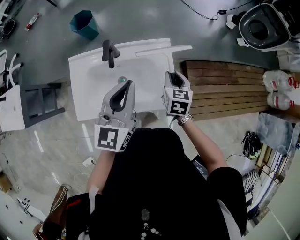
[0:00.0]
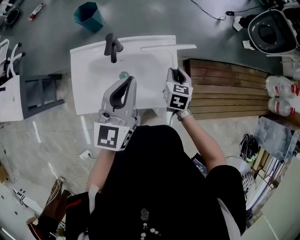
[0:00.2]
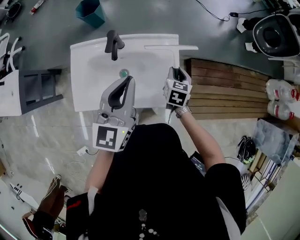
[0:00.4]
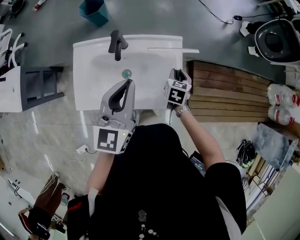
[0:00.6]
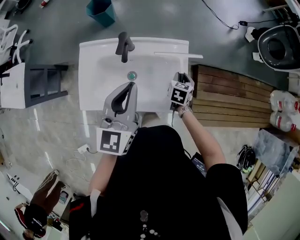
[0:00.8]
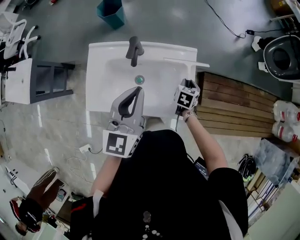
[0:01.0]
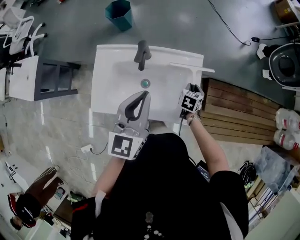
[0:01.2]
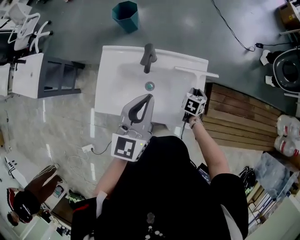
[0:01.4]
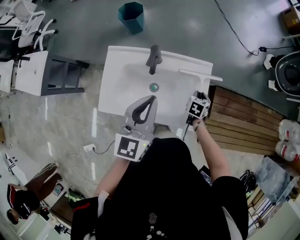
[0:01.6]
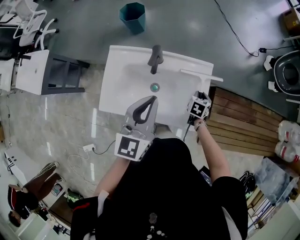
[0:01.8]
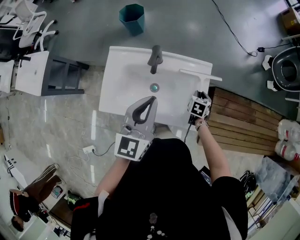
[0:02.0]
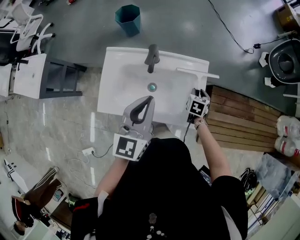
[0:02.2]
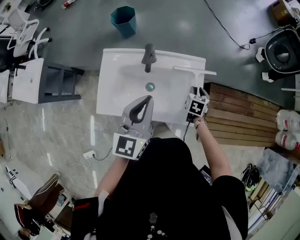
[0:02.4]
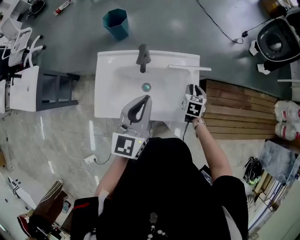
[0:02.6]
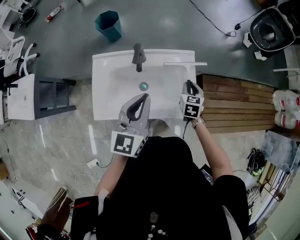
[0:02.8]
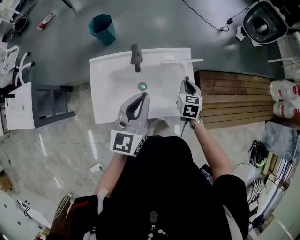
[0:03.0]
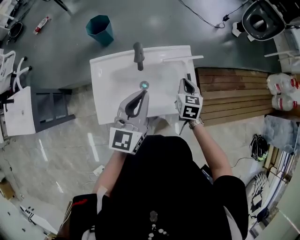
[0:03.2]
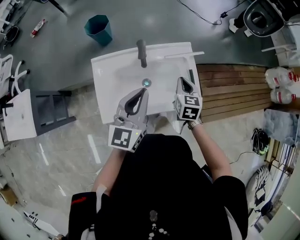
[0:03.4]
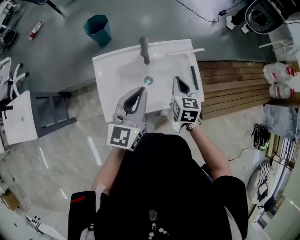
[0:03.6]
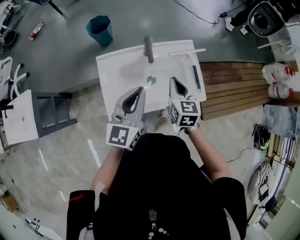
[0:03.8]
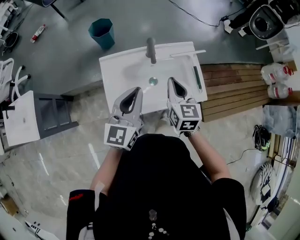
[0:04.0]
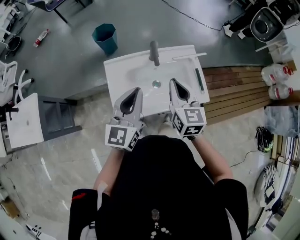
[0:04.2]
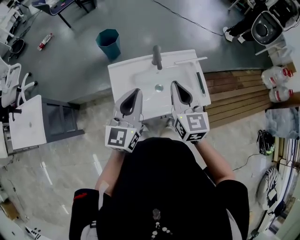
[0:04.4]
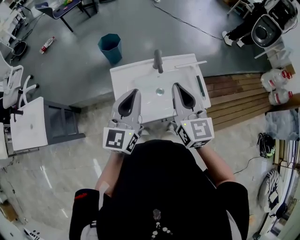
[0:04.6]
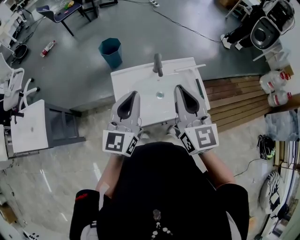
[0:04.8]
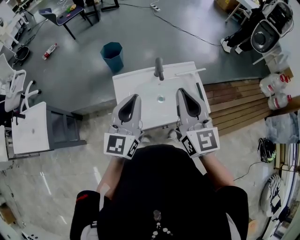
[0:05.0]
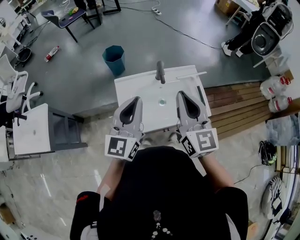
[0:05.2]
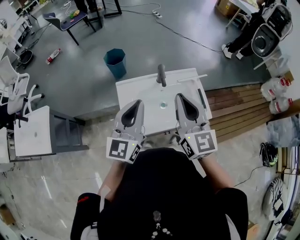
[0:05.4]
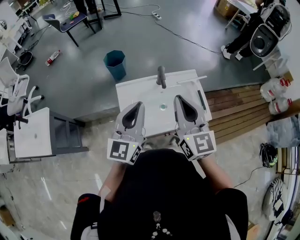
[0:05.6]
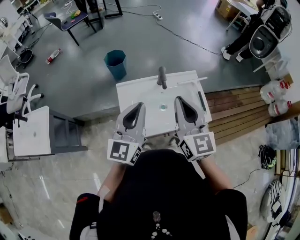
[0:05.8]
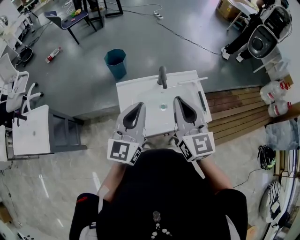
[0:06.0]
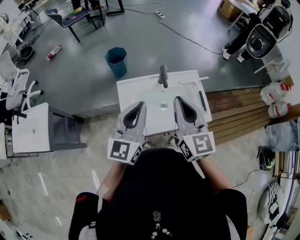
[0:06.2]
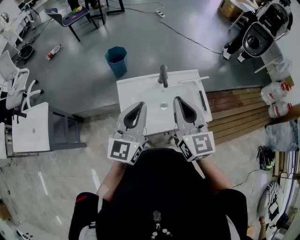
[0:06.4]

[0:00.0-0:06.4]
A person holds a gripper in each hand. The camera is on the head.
0:00.0 to 0:01.6: The right gripper heads downward, covering approximately 15 cm. Meanwhile the left gripper goes about 5 cm to the left.
0:01.6 to 0:03.2: The right gripper is displaced upward, backward and to the left by roughly 15 cm, and closes its fingers.
0:03.2 to 0:04.8: The left gripper goes some 20 cm to the left, upward and backward; the right gripper is displaced upward, to the left and backward by approximately 40 cm, and tilts its fingers some 40 degrees upward.
0:04.8 to 0:06.4: The grippers move only a little.

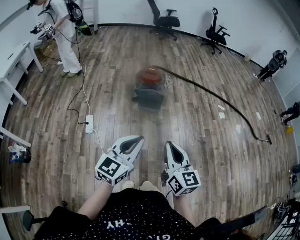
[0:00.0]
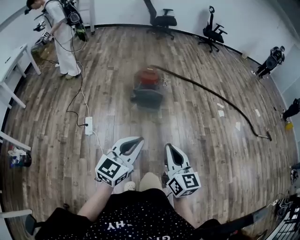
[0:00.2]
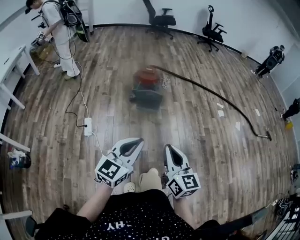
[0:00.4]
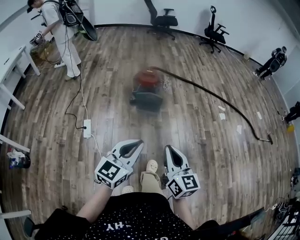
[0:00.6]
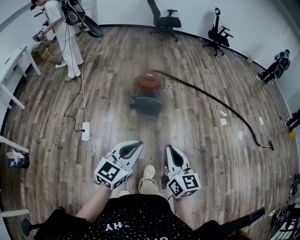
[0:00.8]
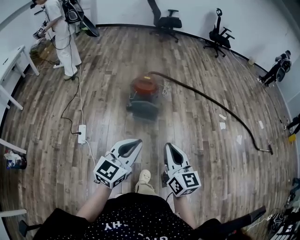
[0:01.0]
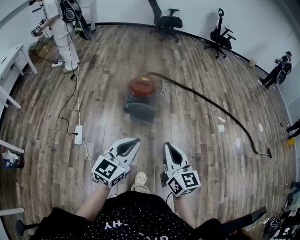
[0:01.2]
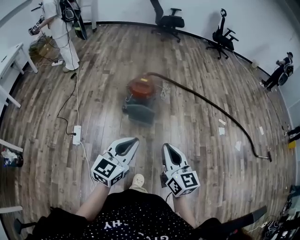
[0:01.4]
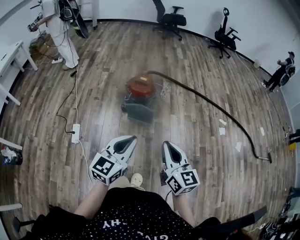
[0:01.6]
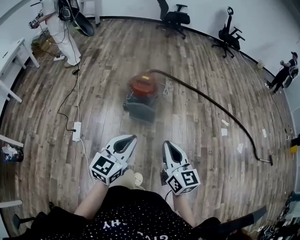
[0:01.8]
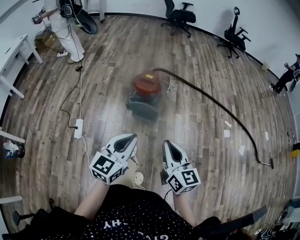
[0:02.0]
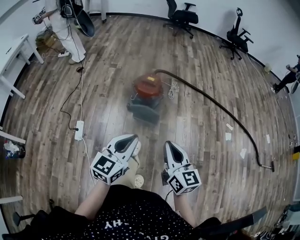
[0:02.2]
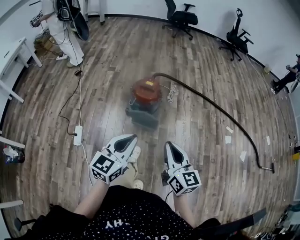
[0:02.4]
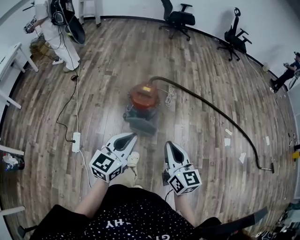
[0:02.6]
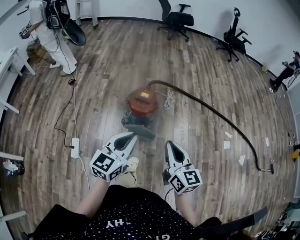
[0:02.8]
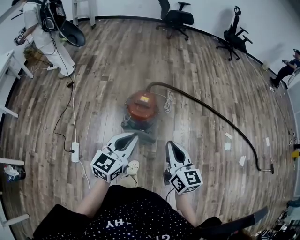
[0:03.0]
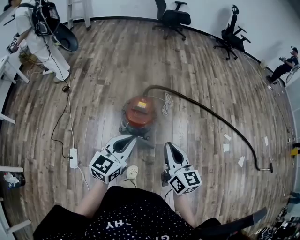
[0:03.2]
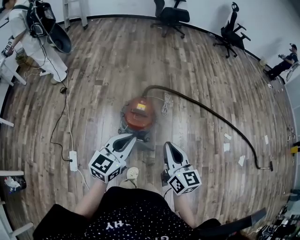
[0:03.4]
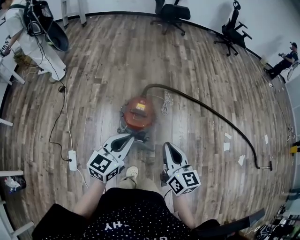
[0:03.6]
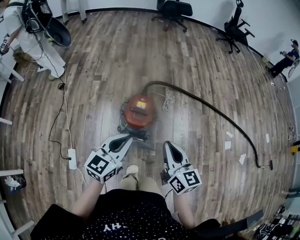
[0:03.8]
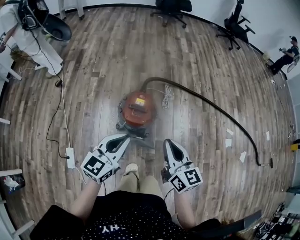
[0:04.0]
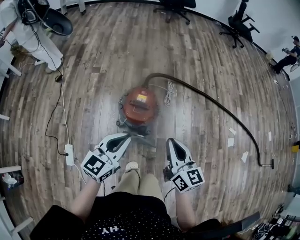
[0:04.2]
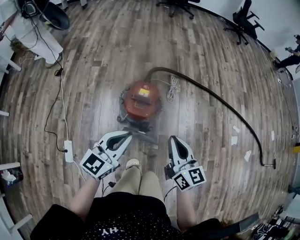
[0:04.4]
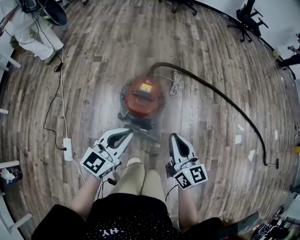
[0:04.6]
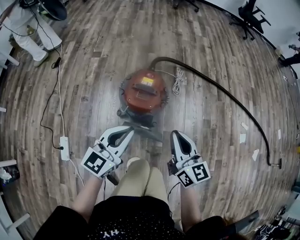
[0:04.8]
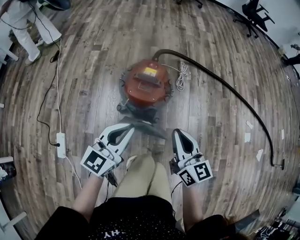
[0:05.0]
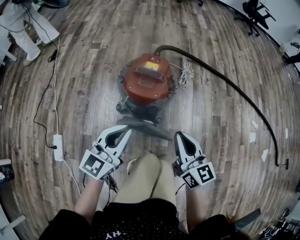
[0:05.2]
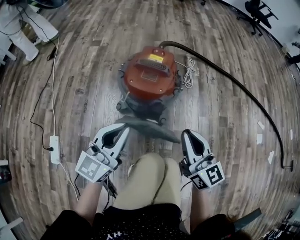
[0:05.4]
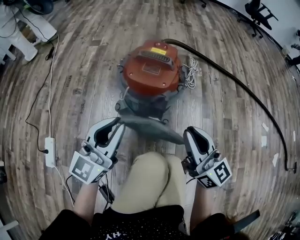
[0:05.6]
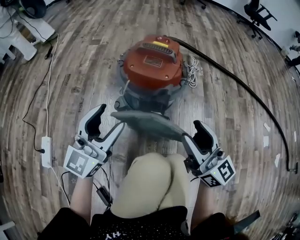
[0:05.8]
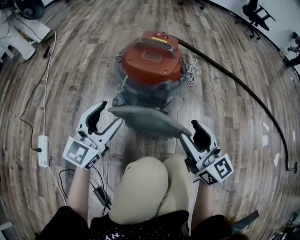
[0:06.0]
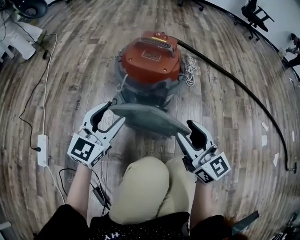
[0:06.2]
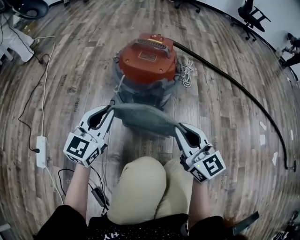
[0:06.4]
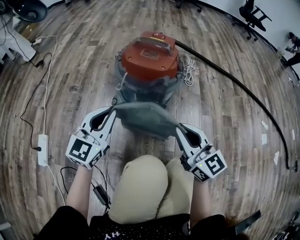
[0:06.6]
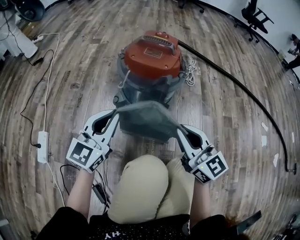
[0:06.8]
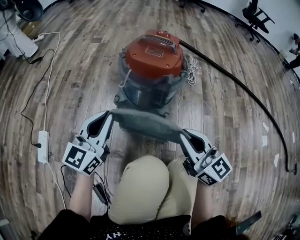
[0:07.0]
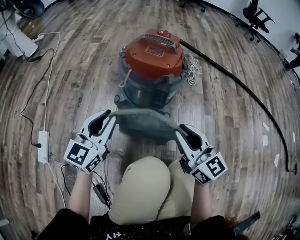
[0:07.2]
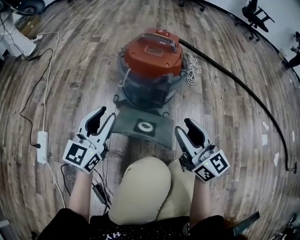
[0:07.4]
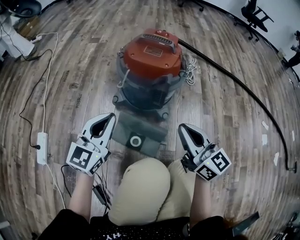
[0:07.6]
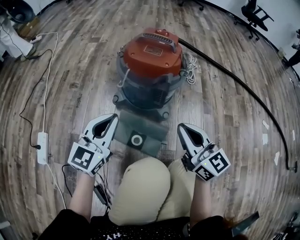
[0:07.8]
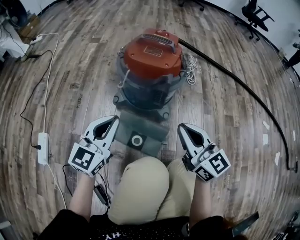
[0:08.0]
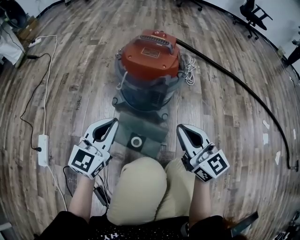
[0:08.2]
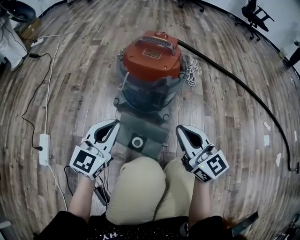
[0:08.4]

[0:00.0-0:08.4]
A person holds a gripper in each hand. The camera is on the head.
0:00.0 to 0:01.4: The grippers both shift forward by roughly 25 cm.
0:01.4 to 0:02.8: The two grippers go approximately 25 cm forward.
0:02.8 to 0:04.2: Both grippers move forward and downward, roughly 20 cm.
0:04.2 to 0:05.6: The two grippers go roughly 35 cm downward. The right gripper rotates roughly 20 degrees. Meanwhile the left gripper rotates about 20 degrees.
0:05.6 to 0:07.0: The left gripper travels downward by about 10 cm, and opens and closes again, while the right gripper heads downward and backward, covering roughly 10 cm, and opens, then closes again.
0:07.0 to 0:08.4: The right gripper opens and closes again; the left gripper opens, then closes again.

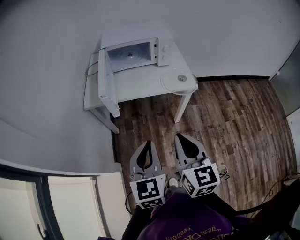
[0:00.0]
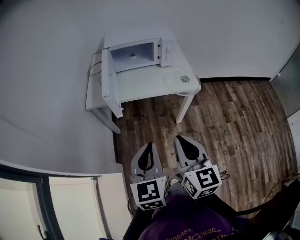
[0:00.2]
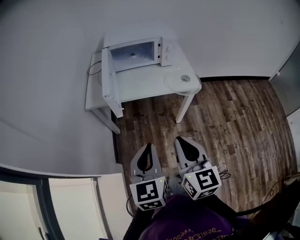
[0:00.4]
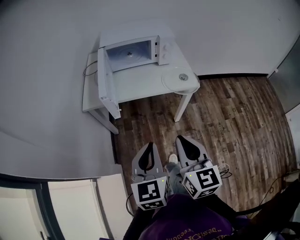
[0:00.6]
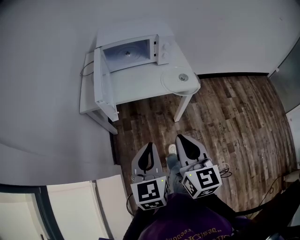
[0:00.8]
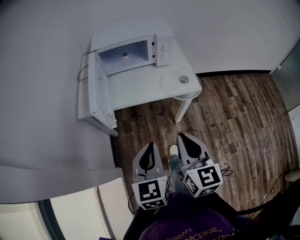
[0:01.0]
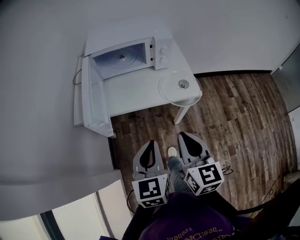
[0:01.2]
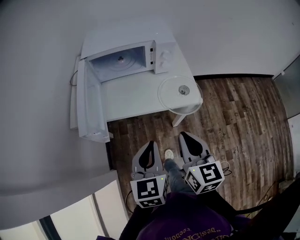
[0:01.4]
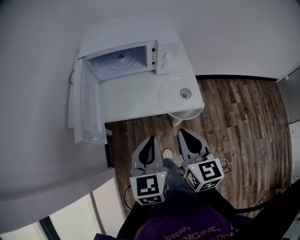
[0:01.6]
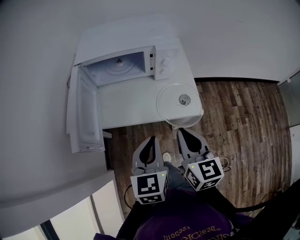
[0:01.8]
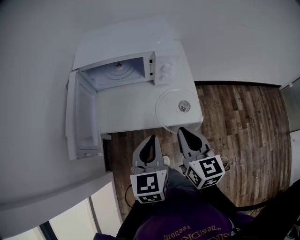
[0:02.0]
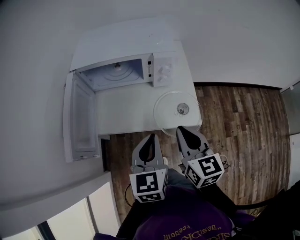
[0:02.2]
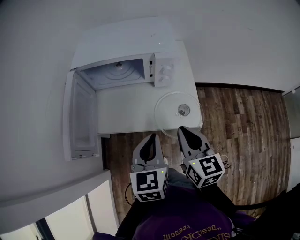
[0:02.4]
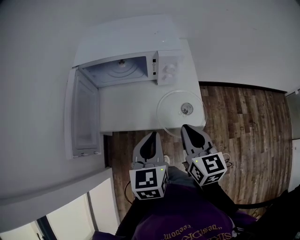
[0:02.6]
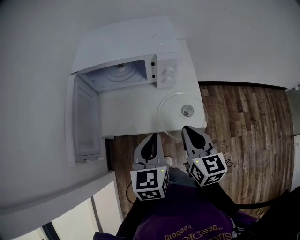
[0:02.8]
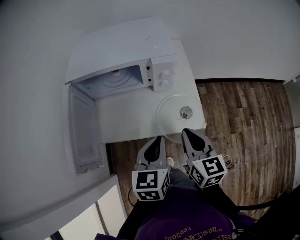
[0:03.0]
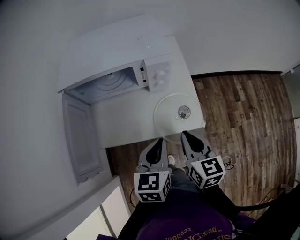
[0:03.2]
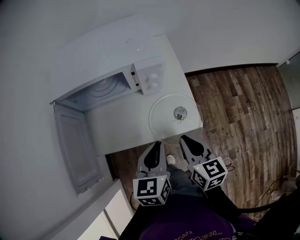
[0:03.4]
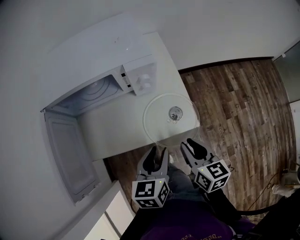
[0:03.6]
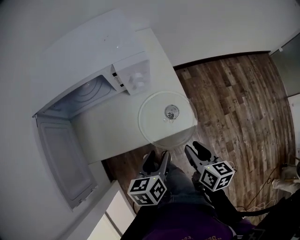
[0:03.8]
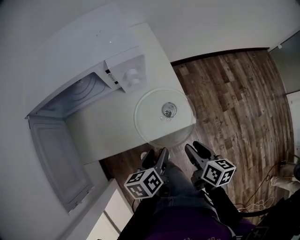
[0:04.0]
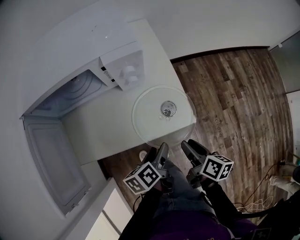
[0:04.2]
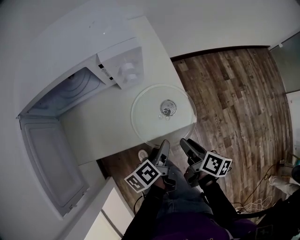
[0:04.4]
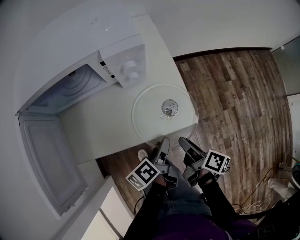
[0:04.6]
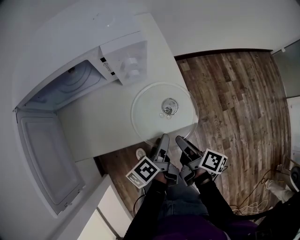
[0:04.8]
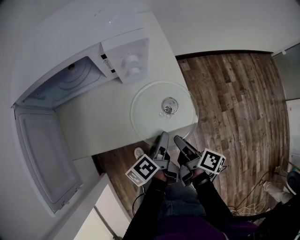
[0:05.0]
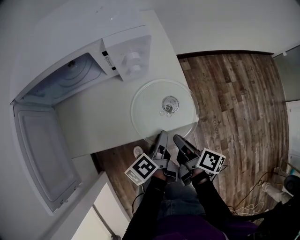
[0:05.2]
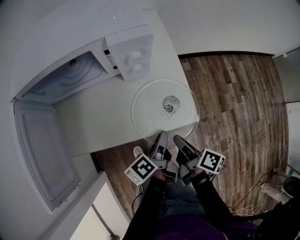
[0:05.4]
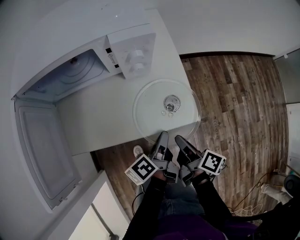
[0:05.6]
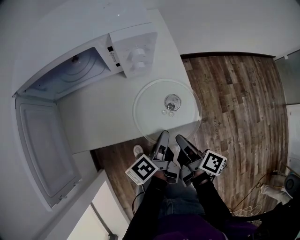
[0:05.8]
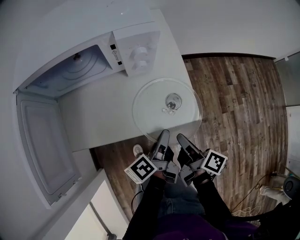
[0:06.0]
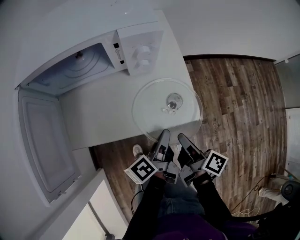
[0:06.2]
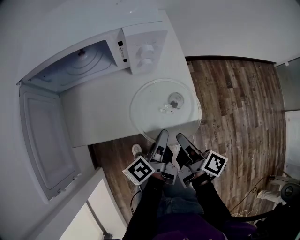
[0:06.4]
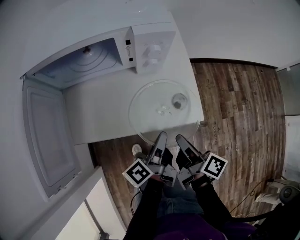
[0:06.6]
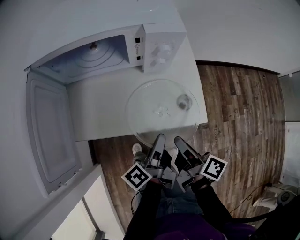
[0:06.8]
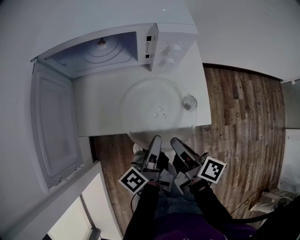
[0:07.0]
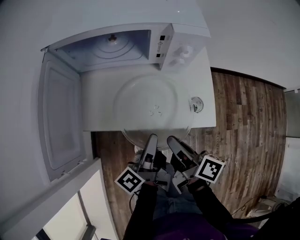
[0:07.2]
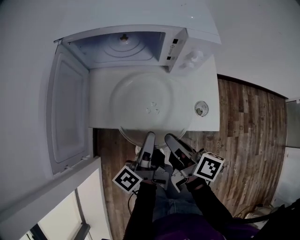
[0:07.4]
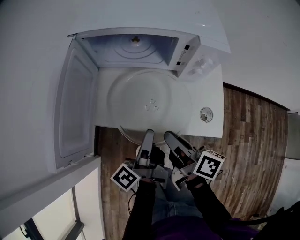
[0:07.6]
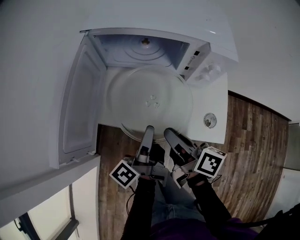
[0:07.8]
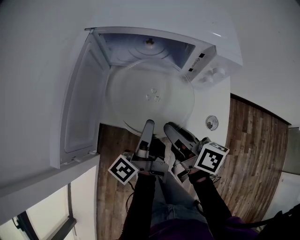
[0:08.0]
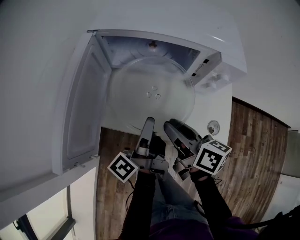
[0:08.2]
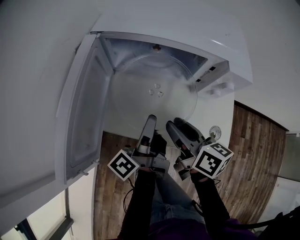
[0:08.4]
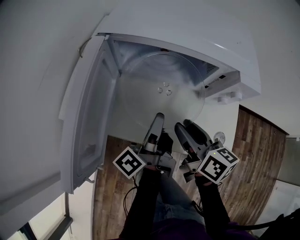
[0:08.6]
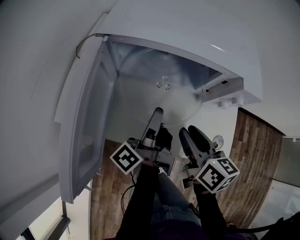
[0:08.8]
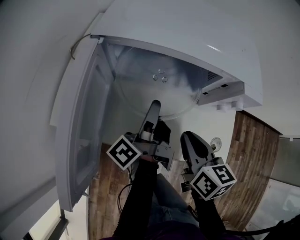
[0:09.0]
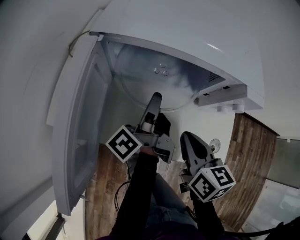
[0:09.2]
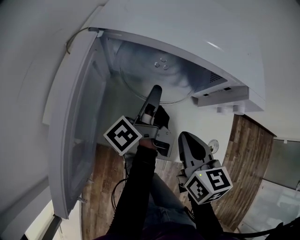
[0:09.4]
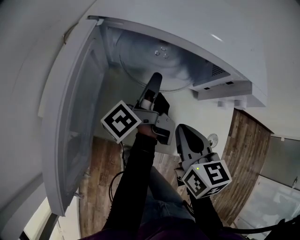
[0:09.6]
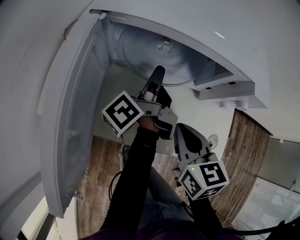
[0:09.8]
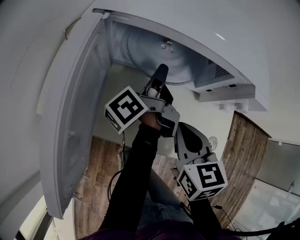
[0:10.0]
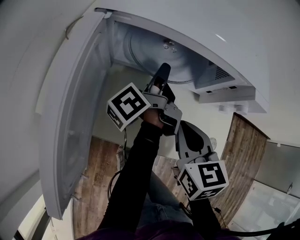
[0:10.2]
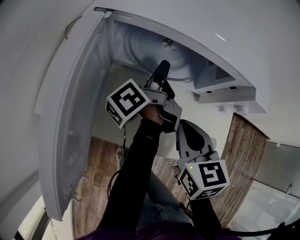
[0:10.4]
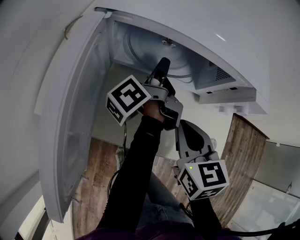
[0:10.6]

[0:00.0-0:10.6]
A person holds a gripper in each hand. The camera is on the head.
0:00.0 to 0:01.6: Both grippers move forward, roughly 20 cm.
0:01.6 to 0:03.0: Both grippers travel together forward and to the right, approximately 15 cm.
0:03.0 to 0:04.6: The right gripper travels downward and to the right by roughly 20 cm, rotates around the line of its fingers by some 60 degrees, clockwise from behind, and opens. Meanwhile the left gripper goes some 20 cm downward, rolls counterclockwise, seen from behind, by some 60 degrees, and opens up.
0:04.6 to 0:06.0: The left gripper closes its fingers; the right gripper closes.
0:06.0 to 0:07.6: The right gripper ends up about 20 cm from where it was, and swivels about 30 degrees; the left gripper moves about 20 cm, and rotates about 30 degrees.
0:07.6 to 0:09.0: The left gripper shifts approximately 20 cm forward; the right gripper shifts approximately 10 cm forward, turns by approximately 40 degrees, and opens and closes again.
0:09.0 to 0:10.6: The left gripper travels forward by approximately 10 cm. The right gripper swivels some 20 degrees.
